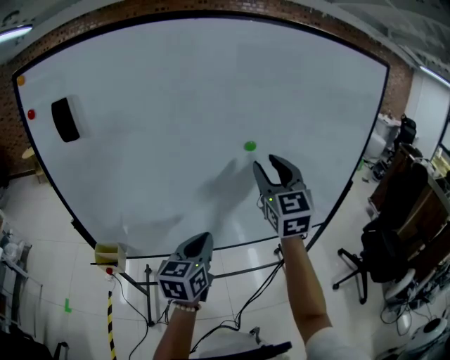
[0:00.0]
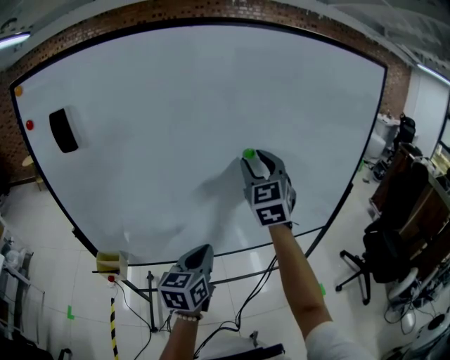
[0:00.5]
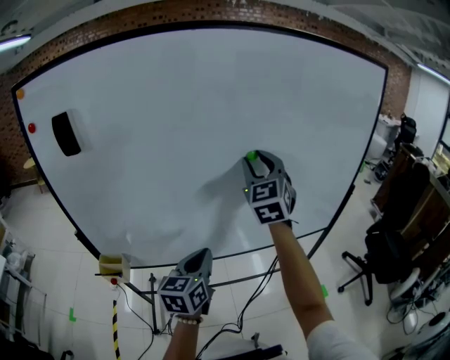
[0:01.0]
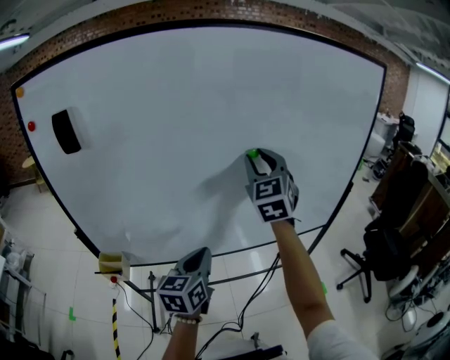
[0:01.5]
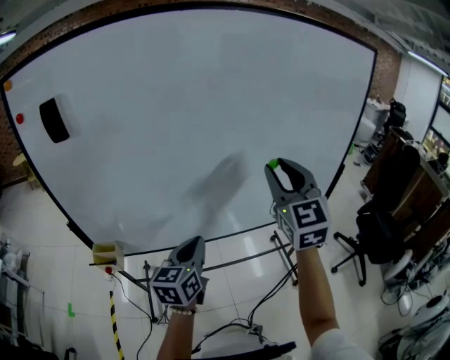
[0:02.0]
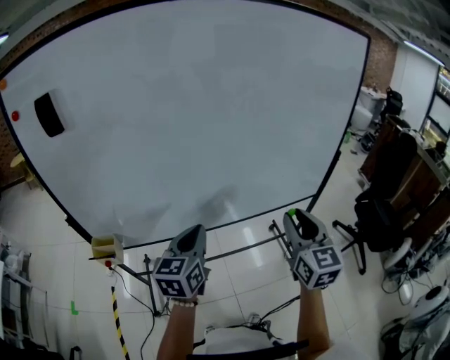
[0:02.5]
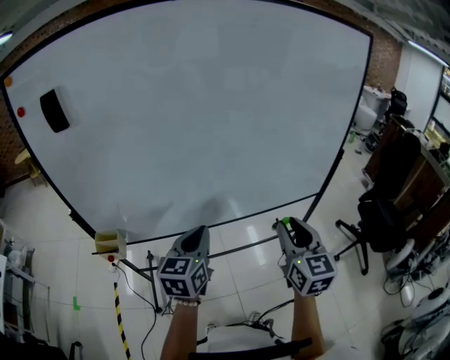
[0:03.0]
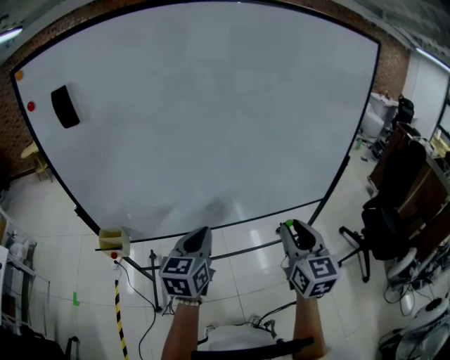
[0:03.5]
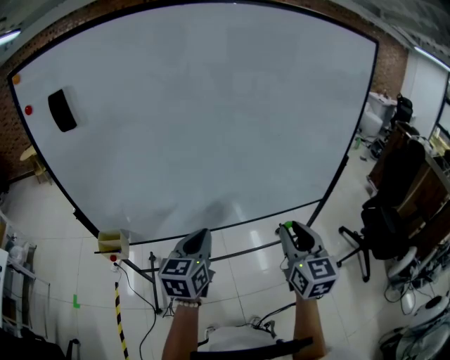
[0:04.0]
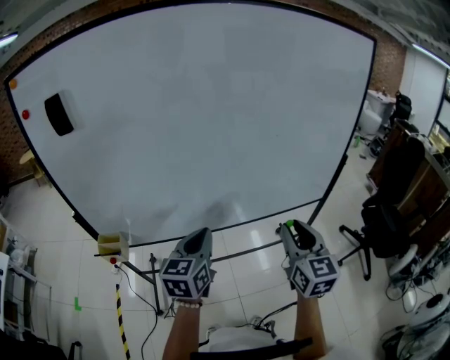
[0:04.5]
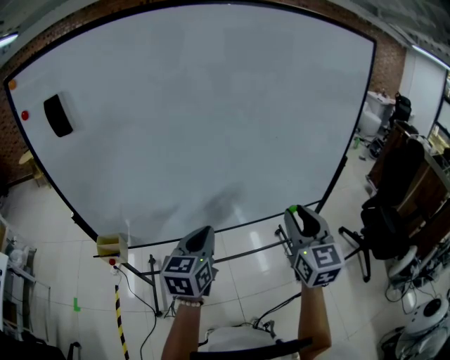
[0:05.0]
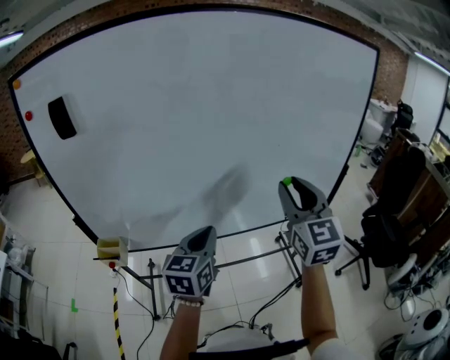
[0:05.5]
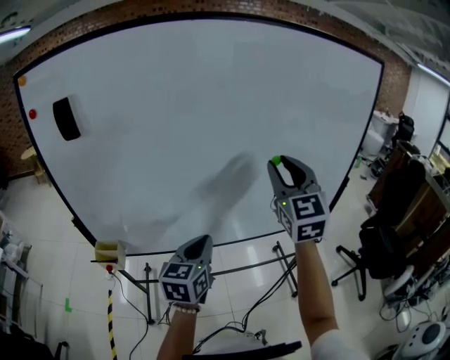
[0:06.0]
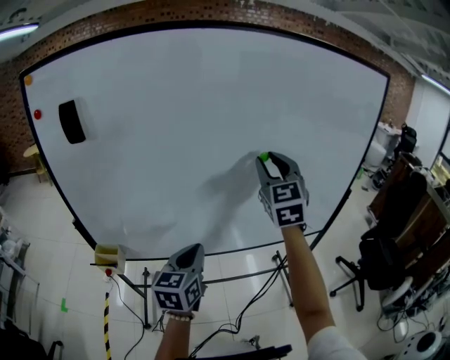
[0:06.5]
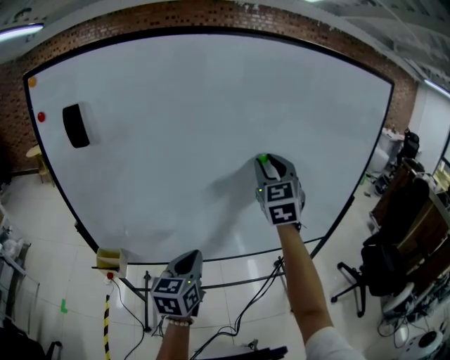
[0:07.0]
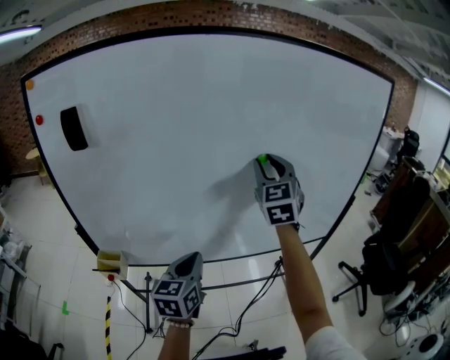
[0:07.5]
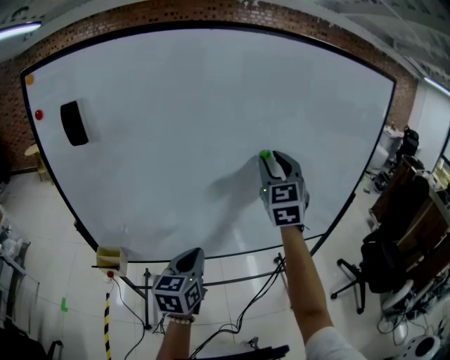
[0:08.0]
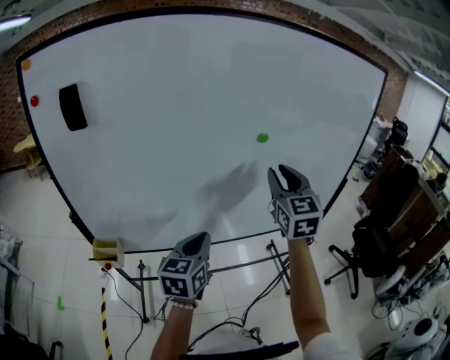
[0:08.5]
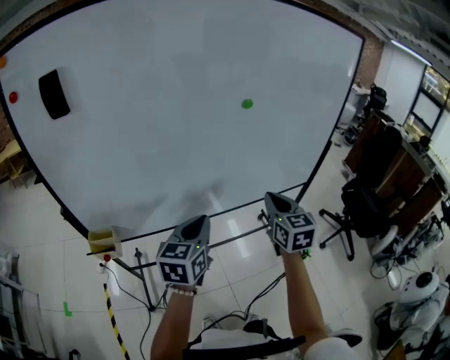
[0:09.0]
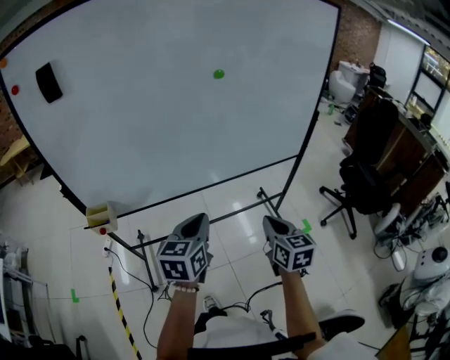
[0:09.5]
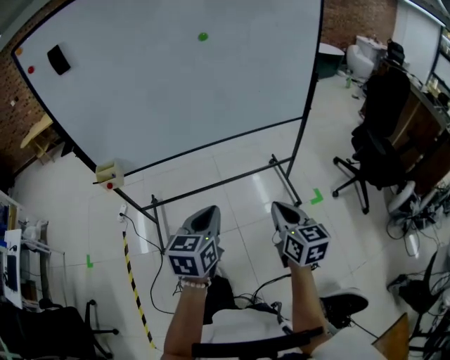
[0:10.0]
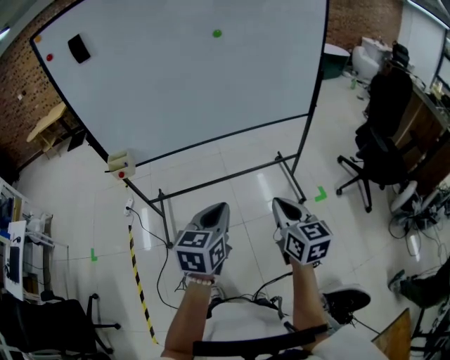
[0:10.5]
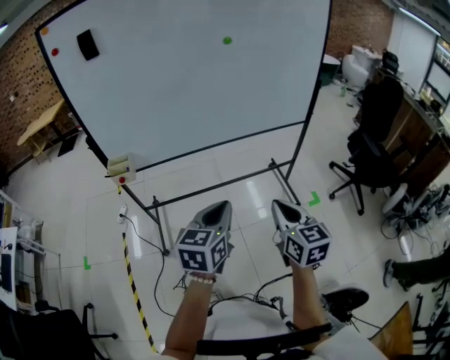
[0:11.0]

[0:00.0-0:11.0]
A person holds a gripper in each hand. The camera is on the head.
0:00.0 to 0:02.0: The right gripper moves backward, approximately 5 cm.
0:02.0 to 0:03.5: The right gripper is displaced downward and backward by approximately 20 cm, and swivels roughly 20 degrees.
0:03.5 to 0:05.5: The right gripper goes some 15 cm upward and forward.
0:05.5 to 0:07.5: The right gripper shifts about 20 cm forward and to the left; the left gripper goes some 5 cm to the left.
0:07.5 to 0:09.0: The right gripper travels downward and backward by approximately 25 cm, changes its angle by approximately 30 degrees, and closes up.
0:09.0 to 0:11.0: Both grippers move backward, some 35 cm.

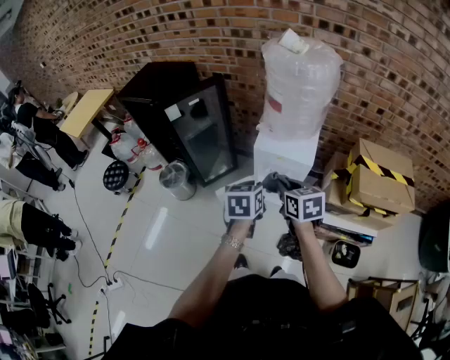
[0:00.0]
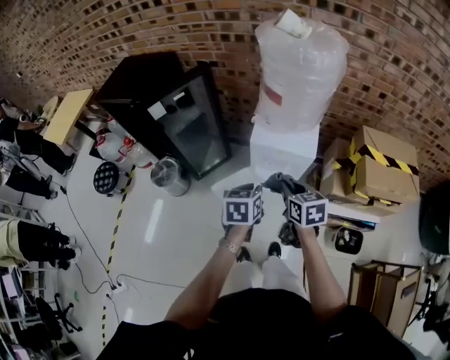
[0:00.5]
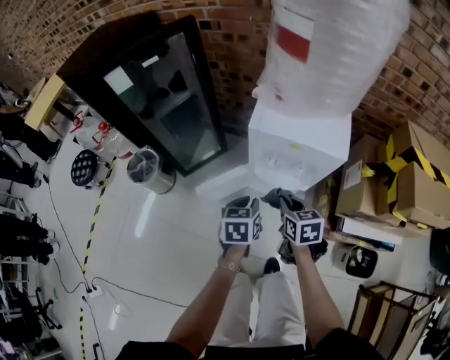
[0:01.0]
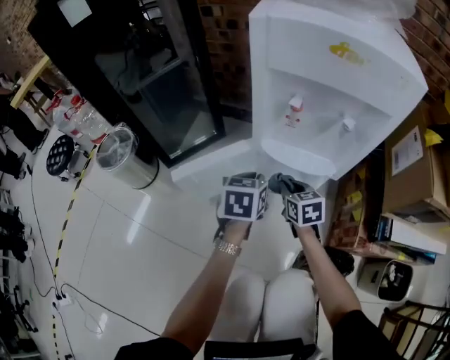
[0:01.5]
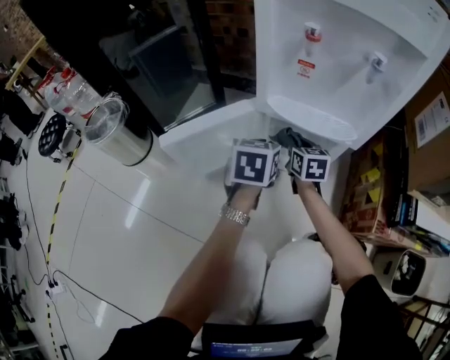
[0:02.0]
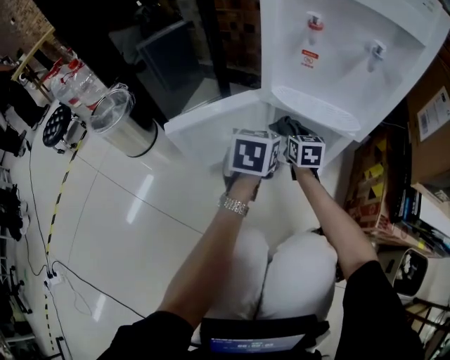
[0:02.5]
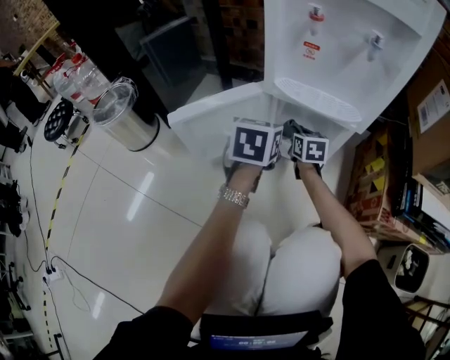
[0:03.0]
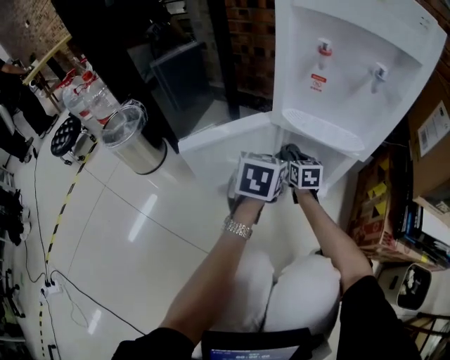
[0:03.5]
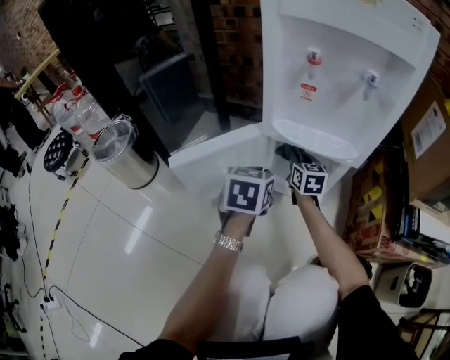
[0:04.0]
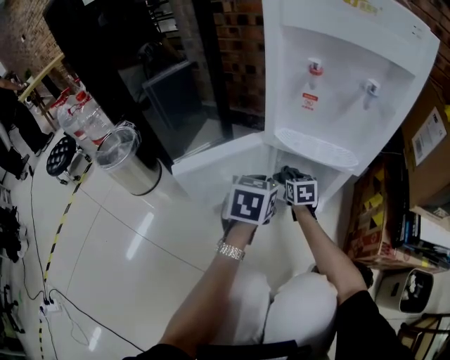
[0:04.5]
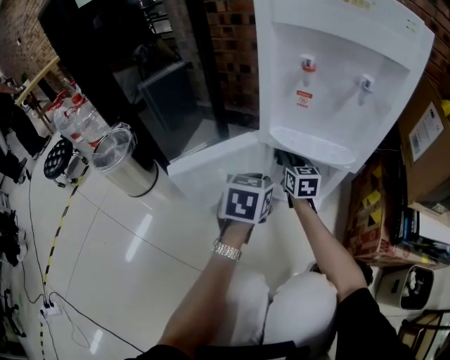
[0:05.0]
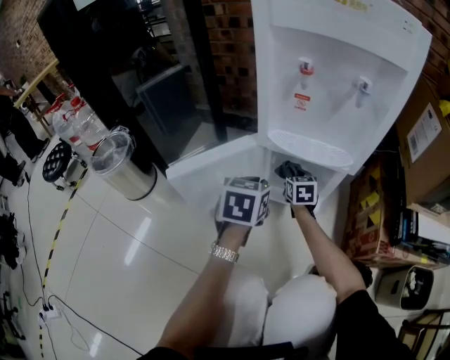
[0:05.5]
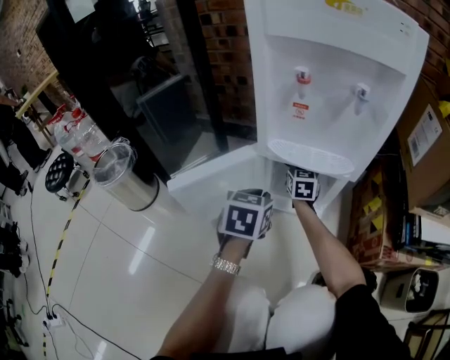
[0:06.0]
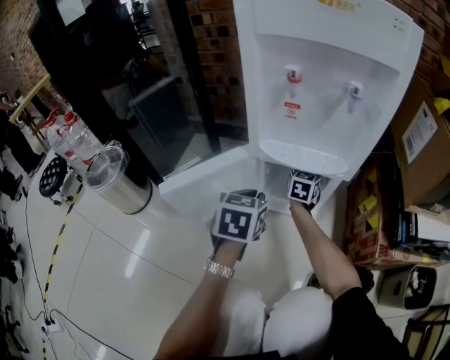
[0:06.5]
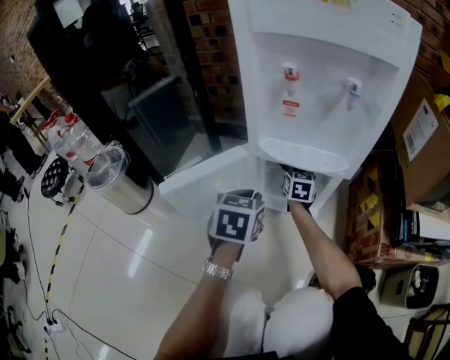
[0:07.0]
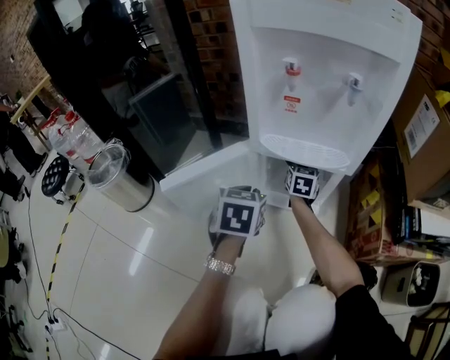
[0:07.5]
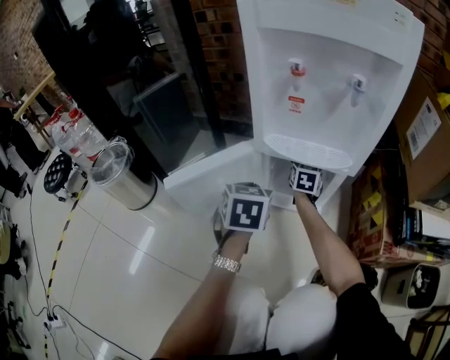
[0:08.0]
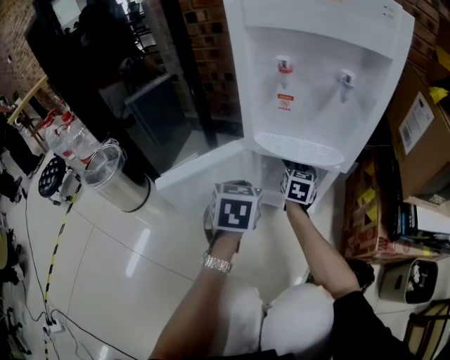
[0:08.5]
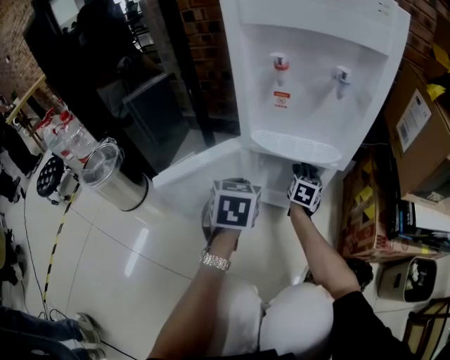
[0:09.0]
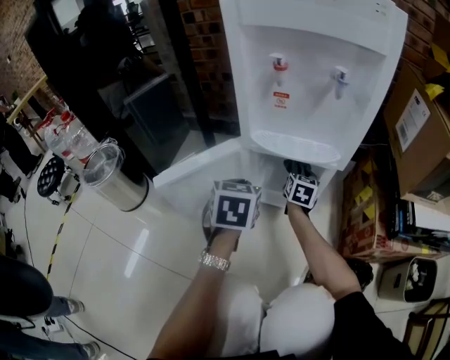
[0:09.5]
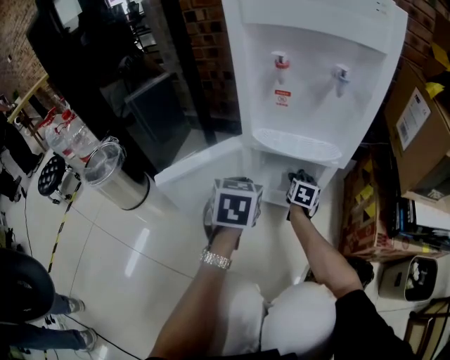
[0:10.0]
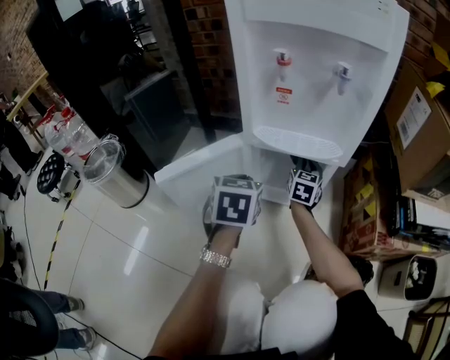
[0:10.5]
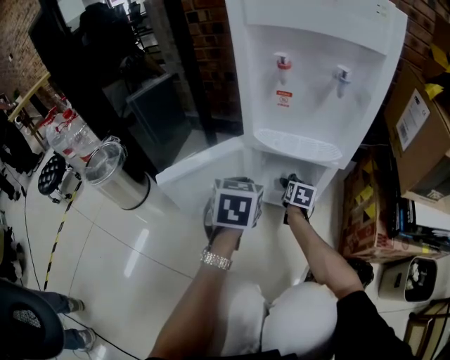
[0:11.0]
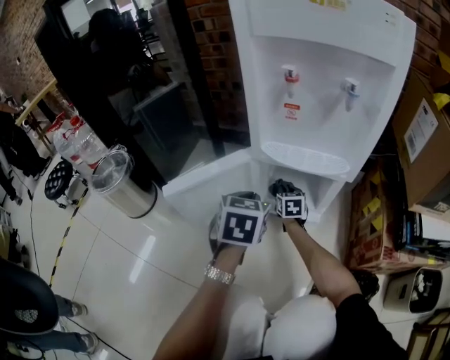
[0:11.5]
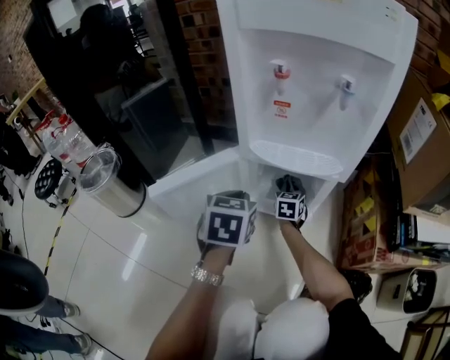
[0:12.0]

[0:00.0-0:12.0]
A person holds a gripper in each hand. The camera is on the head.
0:00.0 to 0:02.0: The grippers both shift downward by some 70 cm.
0:04.0 to 0:06.0: The right gripper moves up and down over approximately 10 cm, changing direction 3 times.
0:08.0 to 0:10.0: The right gripper moves downward, backward and to the right, some 10 cm.
0:10.0 to 0:12.0: The right gripper travels to the left by some 5 cm, and travels upward and back again, about 10 cm each way.

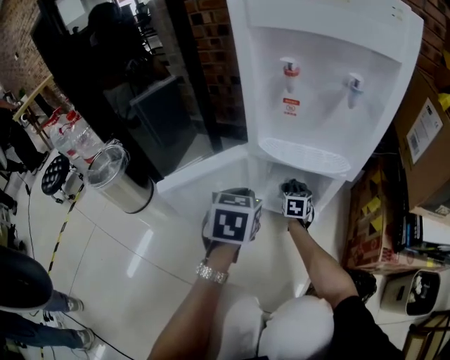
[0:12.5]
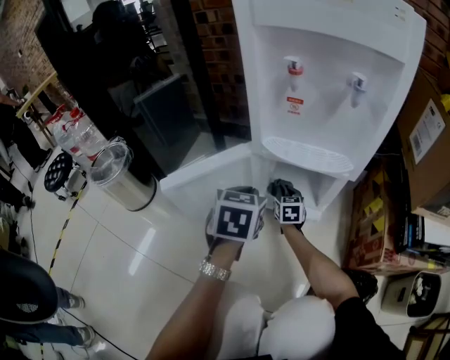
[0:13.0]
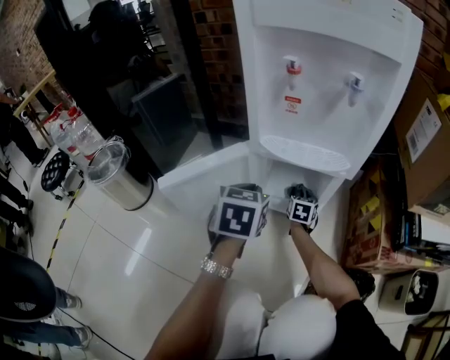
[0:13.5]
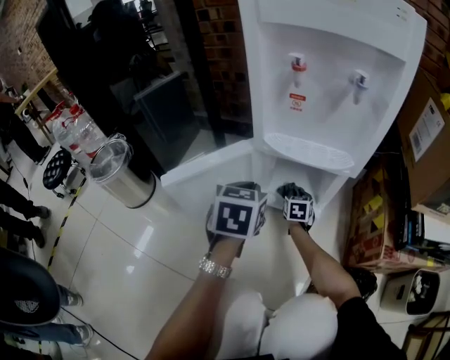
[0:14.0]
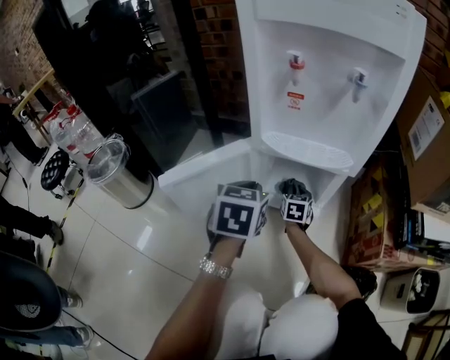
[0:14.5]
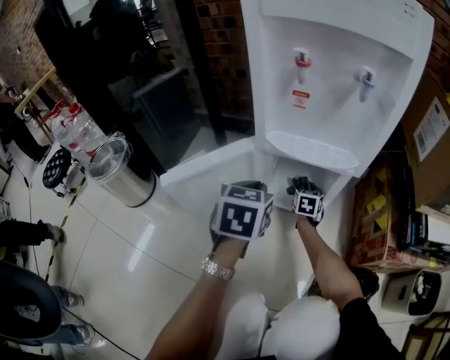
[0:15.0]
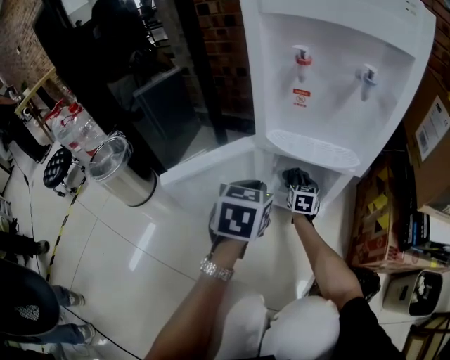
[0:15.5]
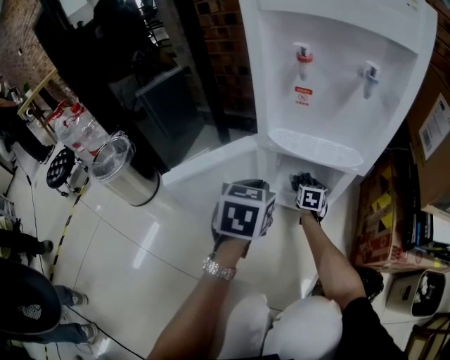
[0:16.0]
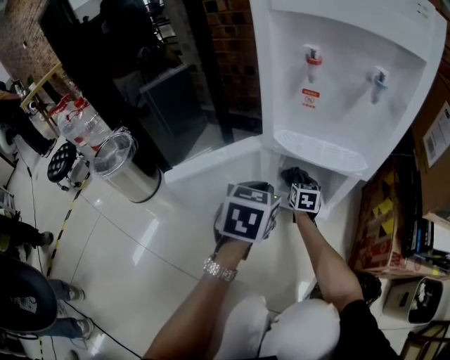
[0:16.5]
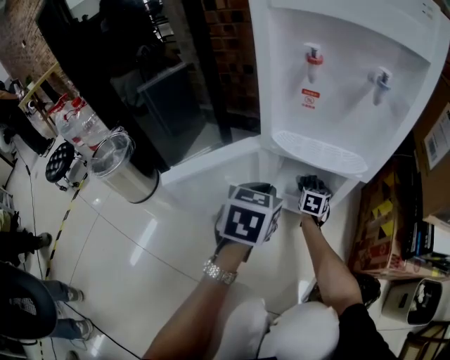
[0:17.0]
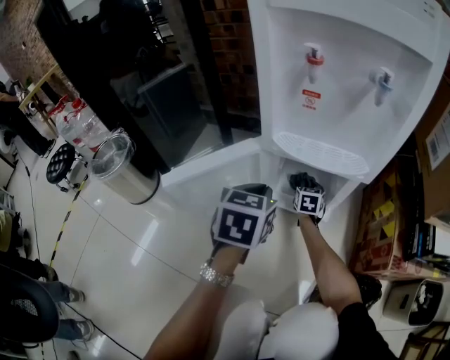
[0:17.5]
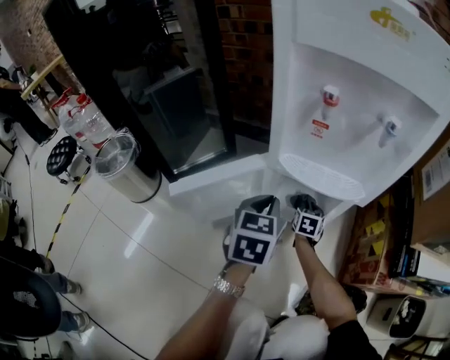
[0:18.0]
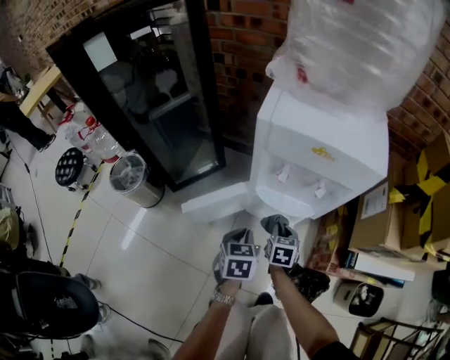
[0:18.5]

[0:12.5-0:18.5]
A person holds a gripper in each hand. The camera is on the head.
0:12.5 to 0:14.5: The right gripper swings left and right, some 10 cm each way, with 2 reversals.
0:14.5 to 0:16.5: The grippers make only small movements.
0:16.5 to 0:18.5: The left gripper heads upward and backward, covering some 15 cm. The right gripper shifts approximately 30 cm upward and backward.
